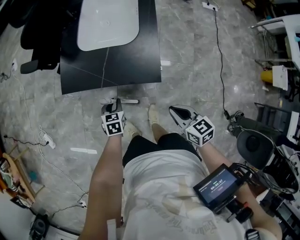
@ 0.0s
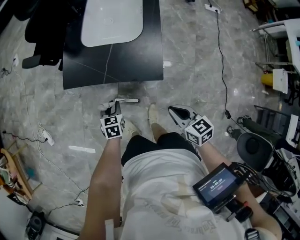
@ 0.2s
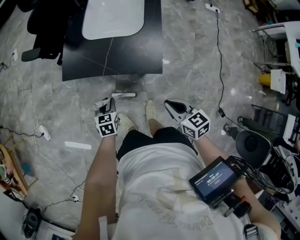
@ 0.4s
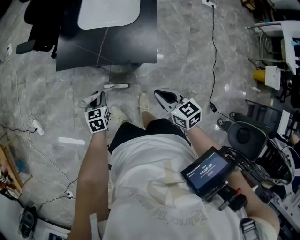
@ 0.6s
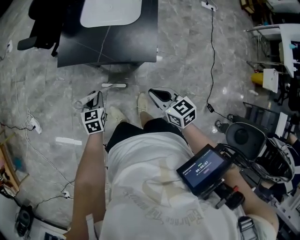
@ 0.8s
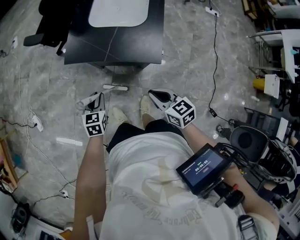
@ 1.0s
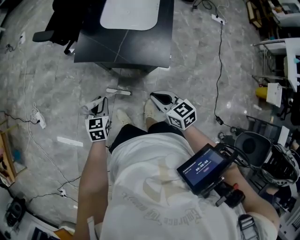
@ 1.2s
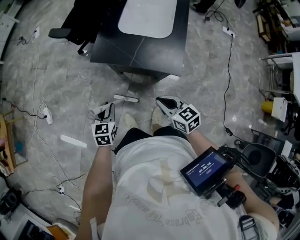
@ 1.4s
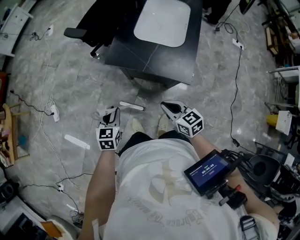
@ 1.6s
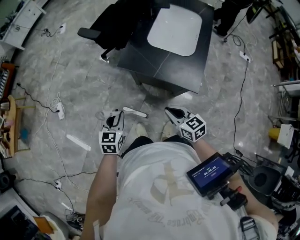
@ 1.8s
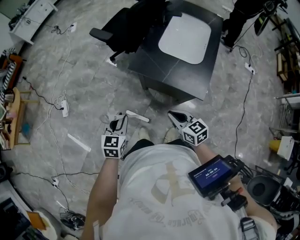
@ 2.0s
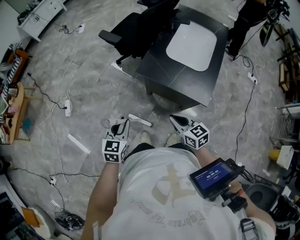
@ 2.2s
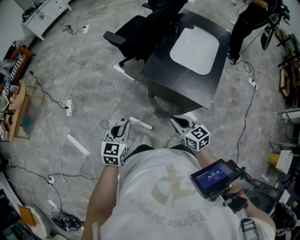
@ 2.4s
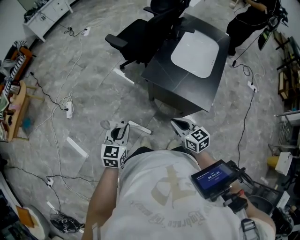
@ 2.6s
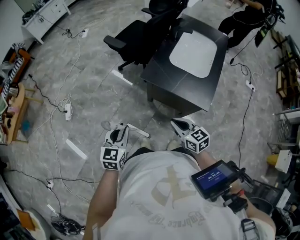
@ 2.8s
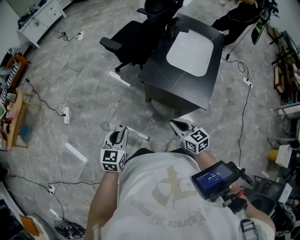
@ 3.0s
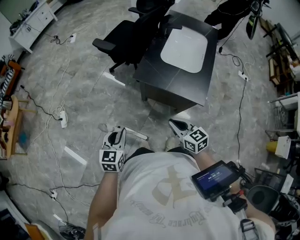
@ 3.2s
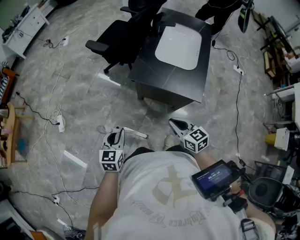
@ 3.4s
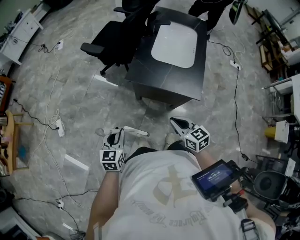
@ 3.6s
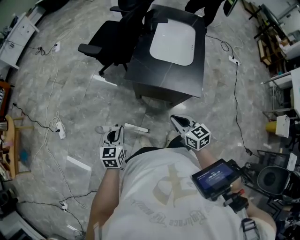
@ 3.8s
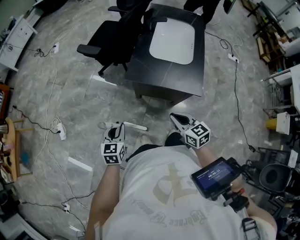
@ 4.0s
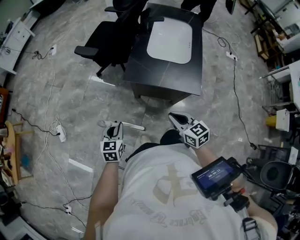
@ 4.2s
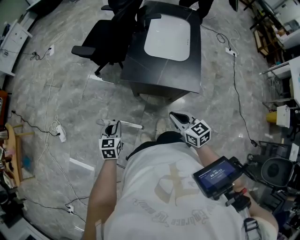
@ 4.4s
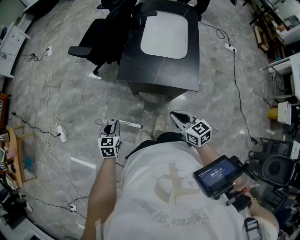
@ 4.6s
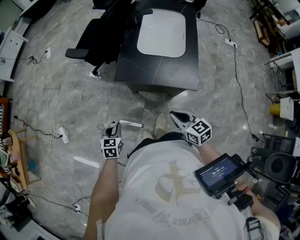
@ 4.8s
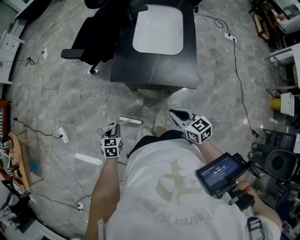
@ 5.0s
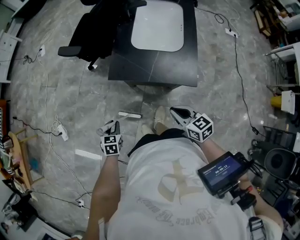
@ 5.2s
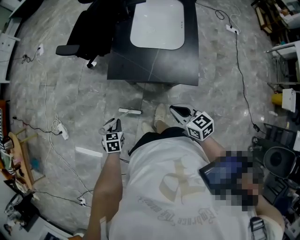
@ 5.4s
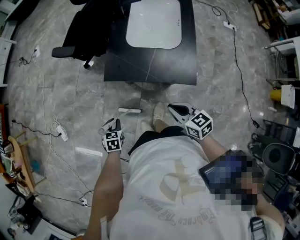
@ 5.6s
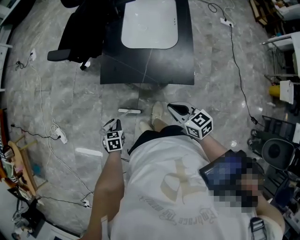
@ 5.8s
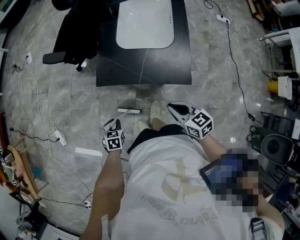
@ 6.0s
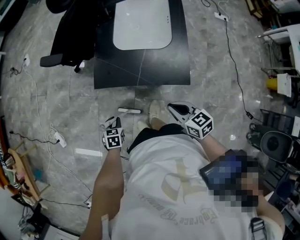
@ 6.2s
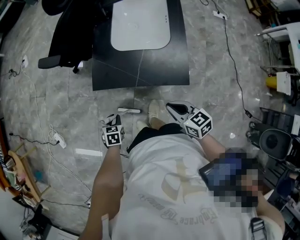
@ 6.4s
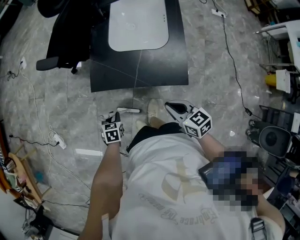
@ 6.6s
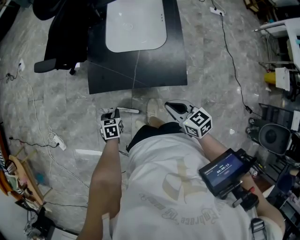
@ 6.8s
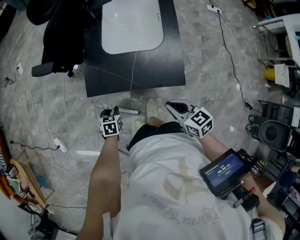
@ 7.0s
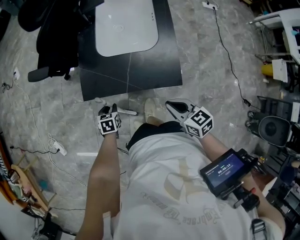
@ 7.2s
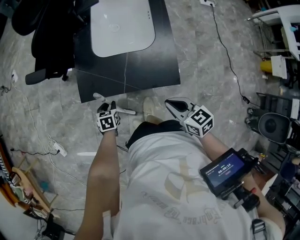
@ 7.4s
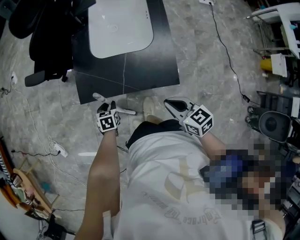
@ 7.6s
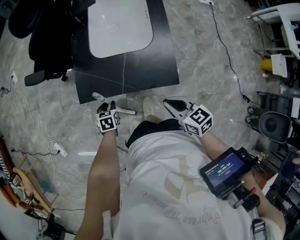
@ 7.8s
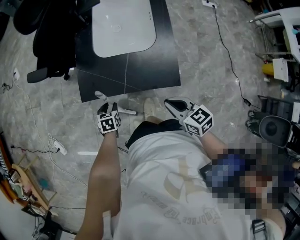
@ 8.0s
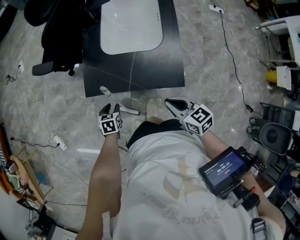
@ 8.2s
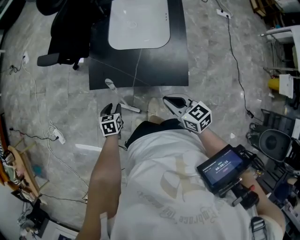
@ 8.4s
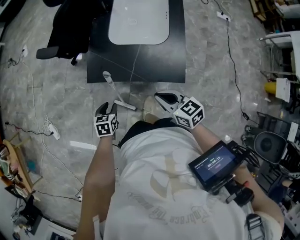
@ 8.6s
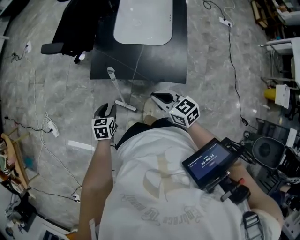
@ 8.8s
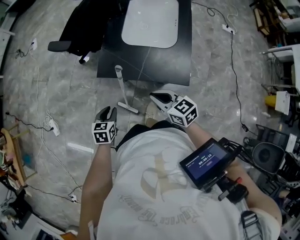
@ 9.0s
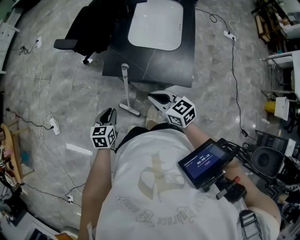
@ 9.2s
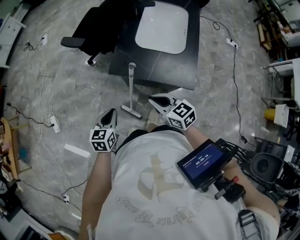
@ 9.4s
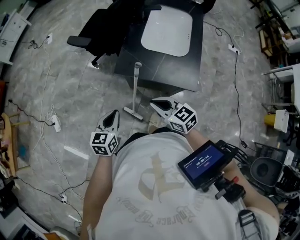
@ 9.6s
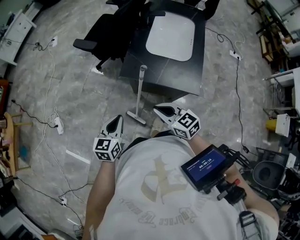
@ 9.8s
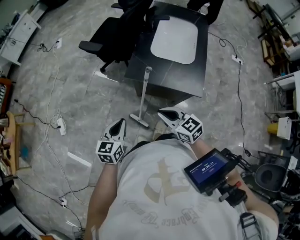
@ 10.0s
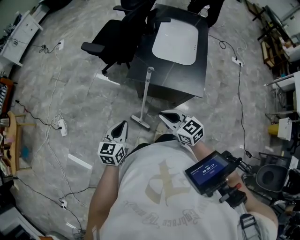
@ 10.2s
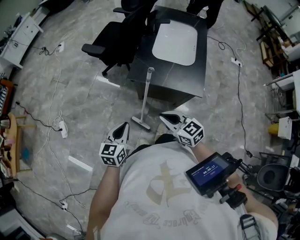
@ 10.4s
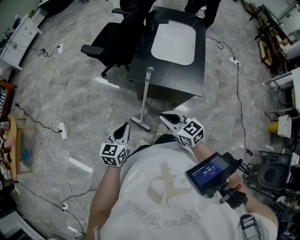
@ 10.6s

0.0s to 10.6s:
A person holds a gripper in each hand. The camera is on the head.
0.0s to 1.6s: The left gripper moves to the left, upward and backward, approximately 25 cm. The right gripper shifts some 15 cm to the left, and swivels roughly 20 degrees.
1.6s to 3.0s: The left gripper shifts approximately 15 cm to the left and upward. The right gripper moves to the left, about 10 cm.
3.0s to 4.6s: The left gripper shifts roughly 15 cm downward and forward.
4.6s to 6.0s: The left gripper moves downward, roughly 10 cm, and changes its angle by approximately 20 degrees; the right gripper shifts roughly 5 cm to the right.
6.0s to 7.6s: The left gripper heads forward and to the right, covering approximately 15 cm.
7.6s to 9.0s: The left gripper heads upward, backward and to the left, covering roughly 15 cm. The right gripper is displaced to the left by some 10 cm.
9.0s to 10.6s: The right gripper shifts approximately 15 cm to the left, backward and upward; the left gripper moves upward, backward and to the left, about 15 cm, swivels some 20 degrees, and closes its fingers.

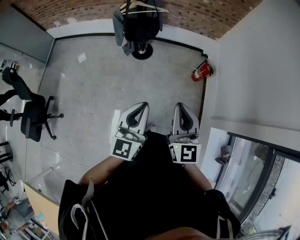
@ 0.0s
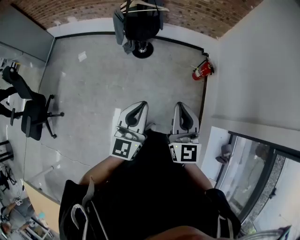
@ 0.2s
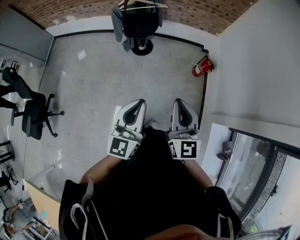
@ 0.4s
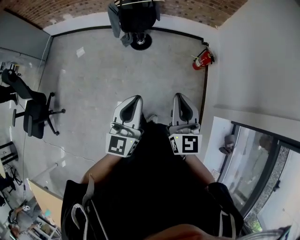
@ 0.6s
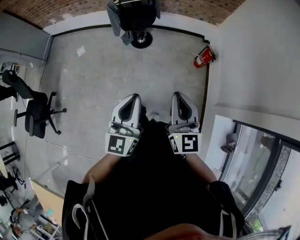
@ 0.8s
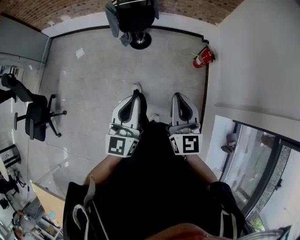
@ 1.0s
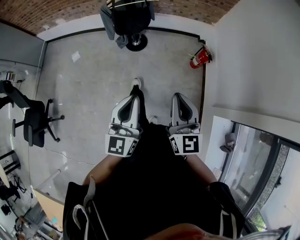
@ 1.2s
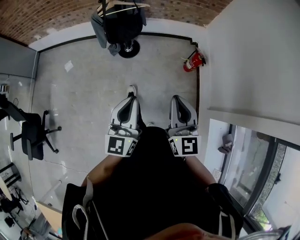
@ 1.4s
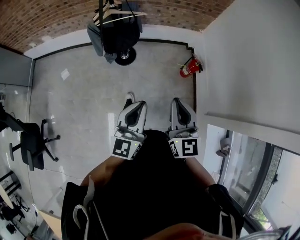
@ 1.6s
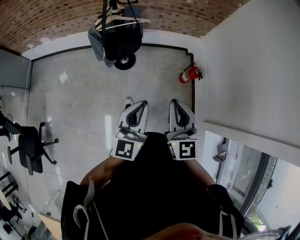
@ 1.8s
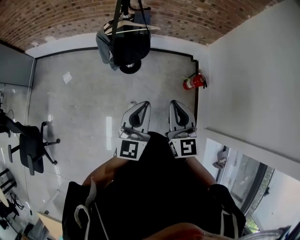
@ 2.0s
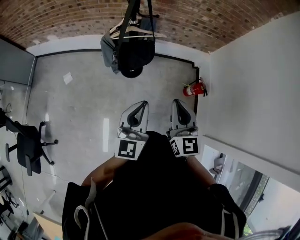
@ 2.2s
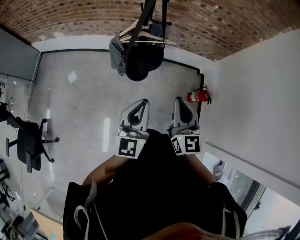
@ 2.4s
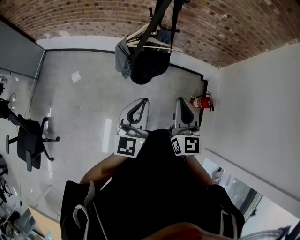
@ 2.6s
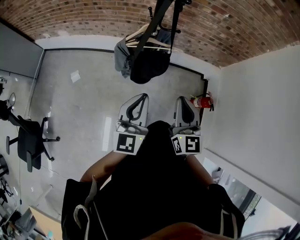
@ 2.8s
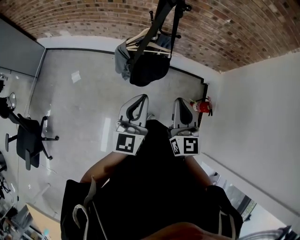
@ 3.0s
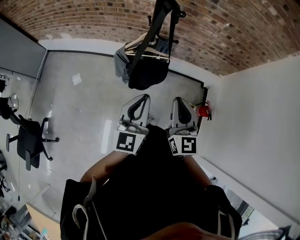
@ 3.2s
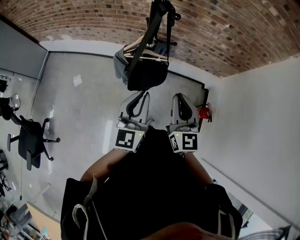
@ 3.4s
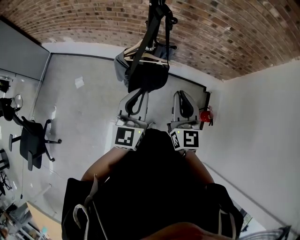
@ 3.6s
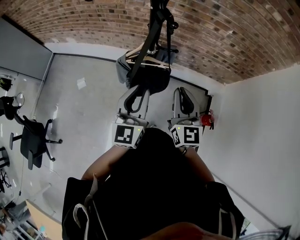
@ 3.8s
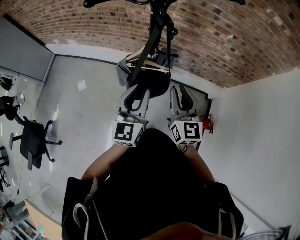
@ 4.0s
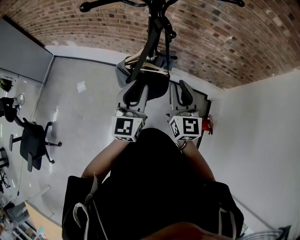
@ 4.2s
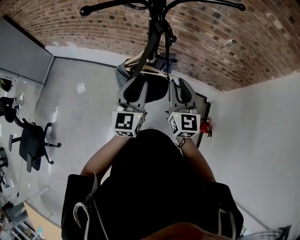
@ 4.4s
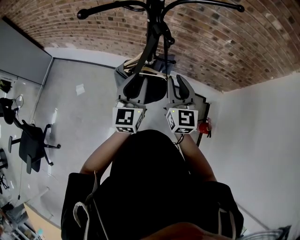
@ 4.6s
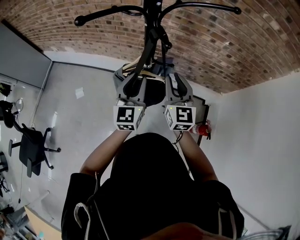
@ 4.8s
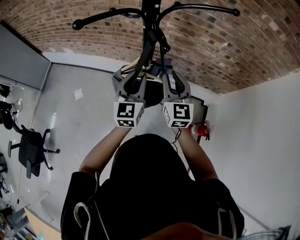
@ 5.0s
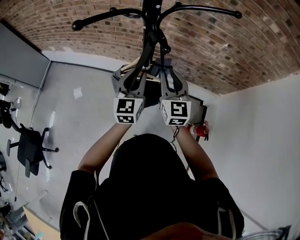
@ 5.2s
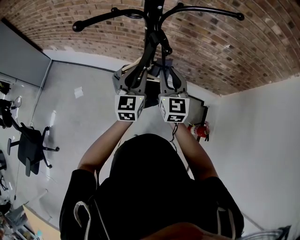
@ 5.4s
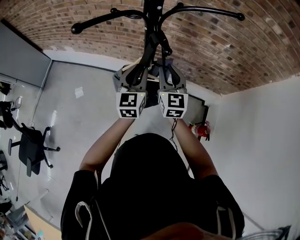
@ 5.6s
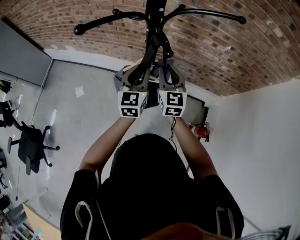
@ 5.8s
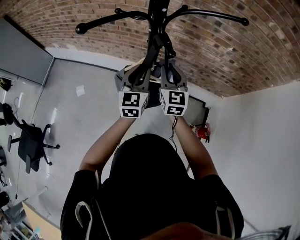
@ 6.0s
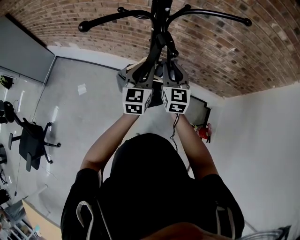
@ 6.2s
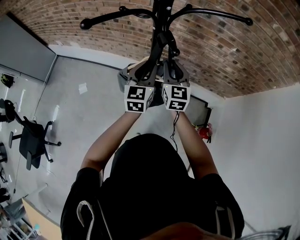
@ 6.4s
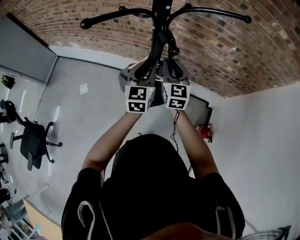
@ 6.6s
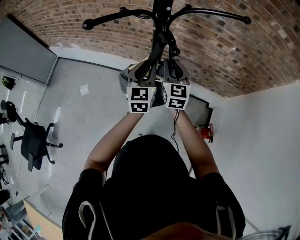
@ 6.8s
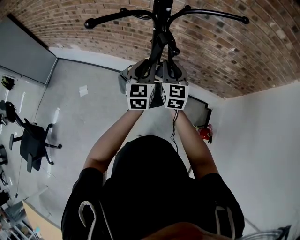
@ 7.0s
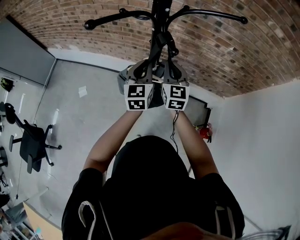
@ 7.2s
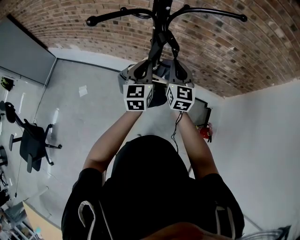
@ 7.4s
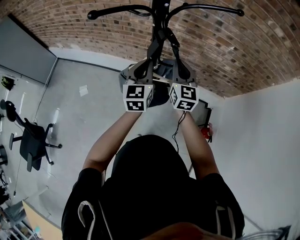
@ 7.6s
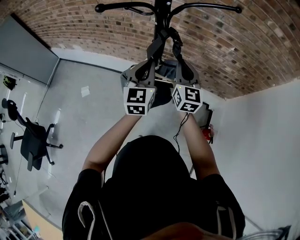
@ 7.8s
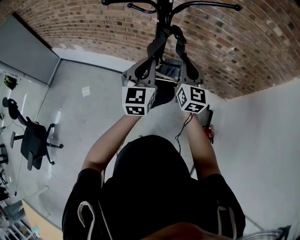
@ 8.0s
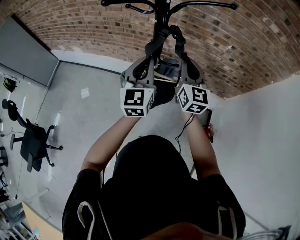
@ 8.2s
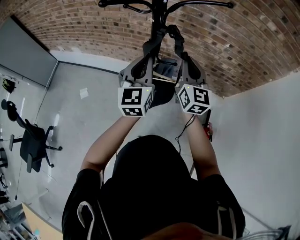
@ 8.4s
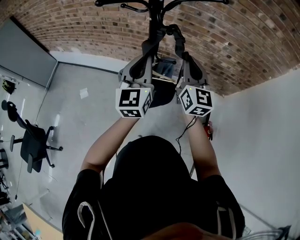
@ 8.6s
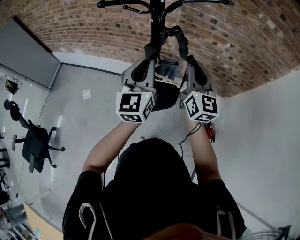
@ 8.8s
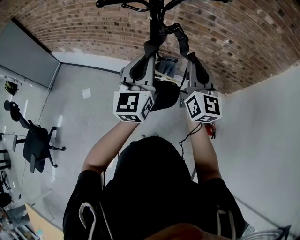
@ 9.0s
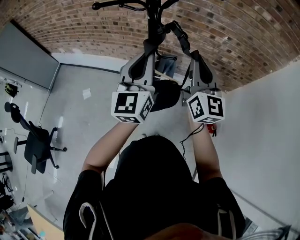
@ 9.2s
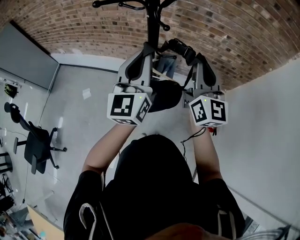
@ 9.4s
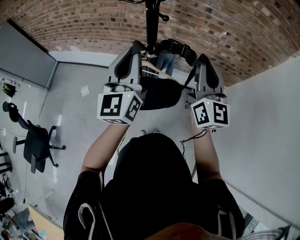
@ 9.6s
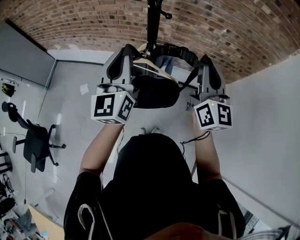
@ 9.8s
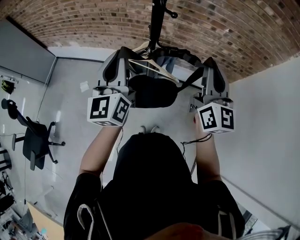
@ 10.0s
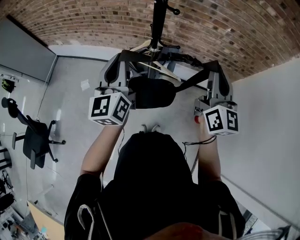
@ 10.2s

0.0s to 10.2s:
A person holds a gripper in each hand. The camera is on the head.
0.0s to 1.4s: The two grippers go some 10 cm forward.
1.4s to 3.0s: Both grippers move forward and to the left, some 35 cm.
3.0s to 4.4s: Both grippers move forward, approximately 20 cm.
4.4s to 5.8s: The grippers both shift forward by about 10 cm.
5.8s to 7.2s: The grippers make only small movements.
7.2s to 8.8s: The right gripper goes approximately 15 cm upward, backward and to the right; the left gripper moves upward and backward, approximately 15 cm.
8.8s to 10.2s: The left gripper shifts some 10 cm to the left and backward. The right gripper moves backward and to the right, approximately 10 cm.

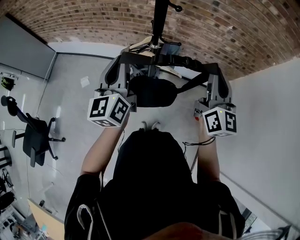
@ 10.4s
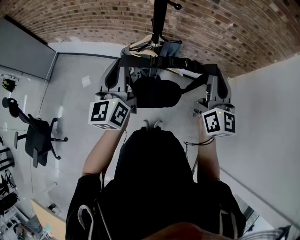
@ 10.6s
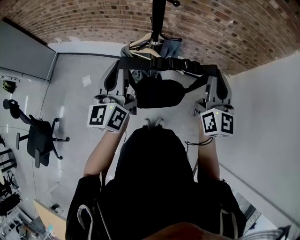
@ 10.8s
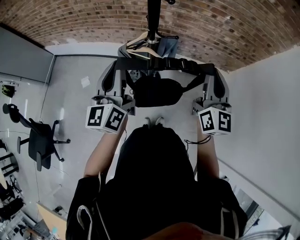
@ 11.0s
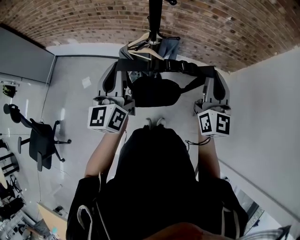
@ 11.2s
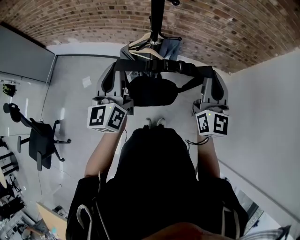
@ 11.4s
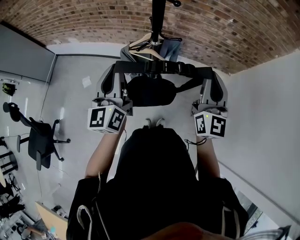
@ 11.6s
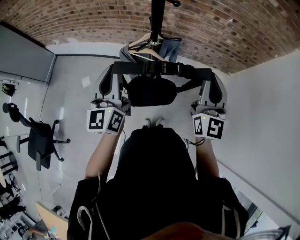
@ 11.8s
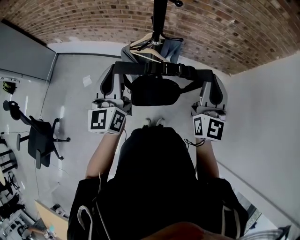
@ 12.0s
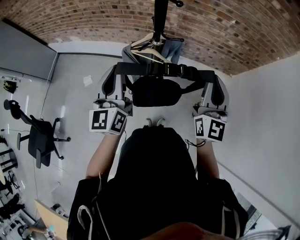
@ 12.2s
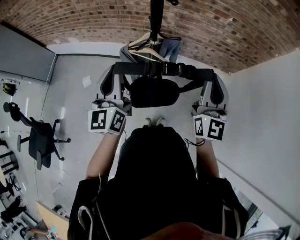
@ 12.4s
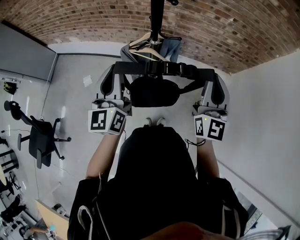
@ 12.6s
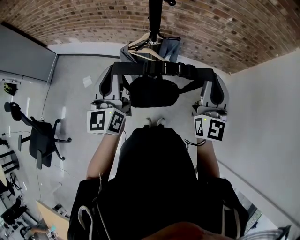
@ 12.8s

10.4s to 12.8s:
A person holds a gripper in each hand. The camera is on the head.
10.4s to 12.8s: There are only small adjustments of the grippers.
